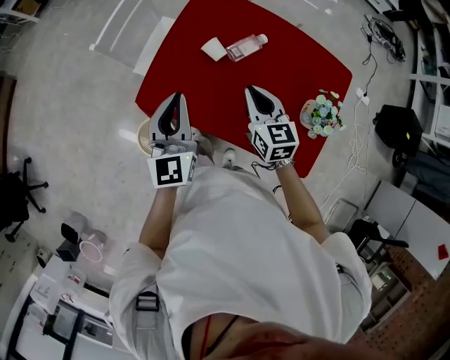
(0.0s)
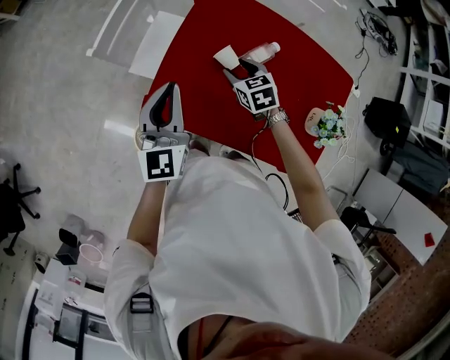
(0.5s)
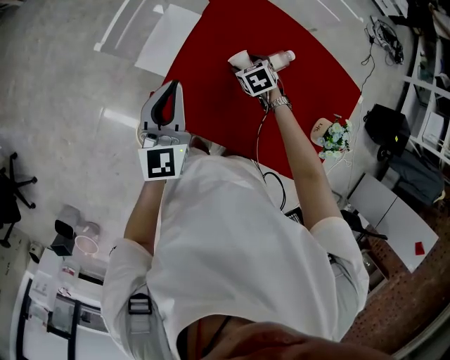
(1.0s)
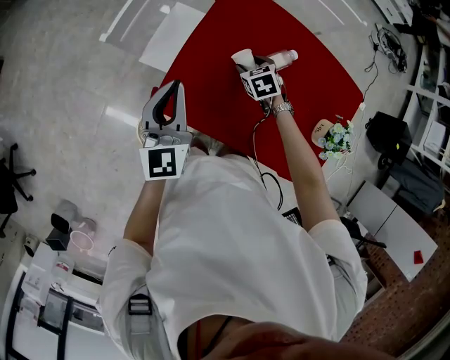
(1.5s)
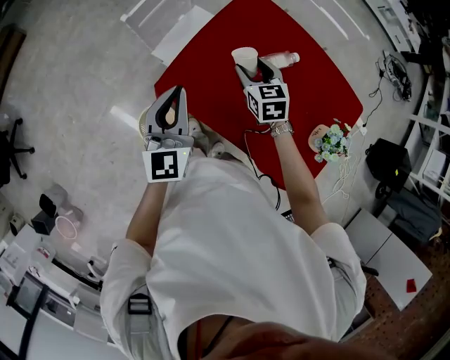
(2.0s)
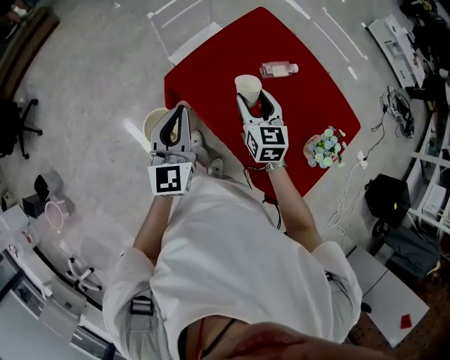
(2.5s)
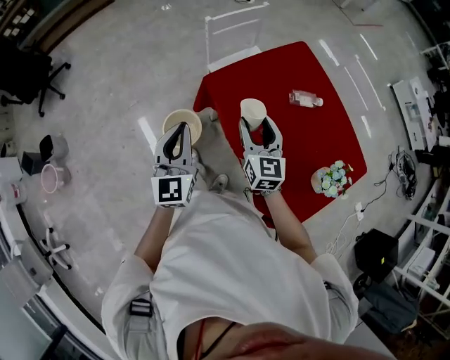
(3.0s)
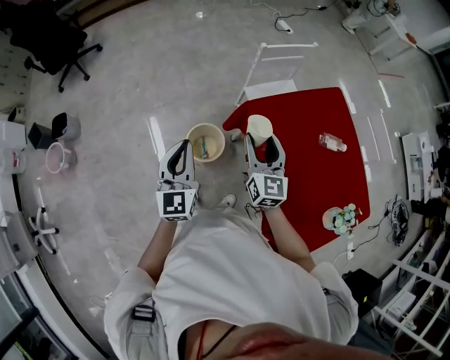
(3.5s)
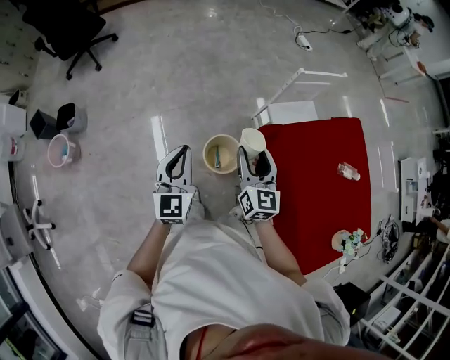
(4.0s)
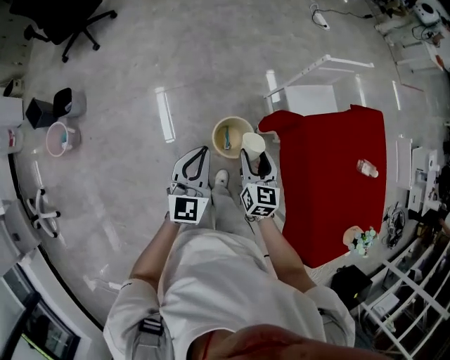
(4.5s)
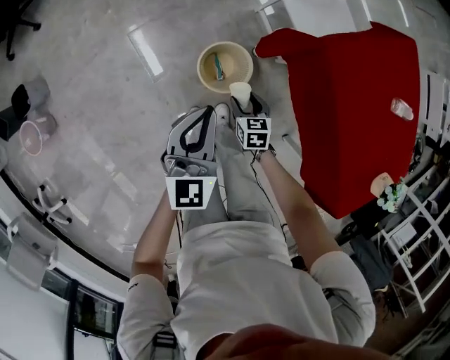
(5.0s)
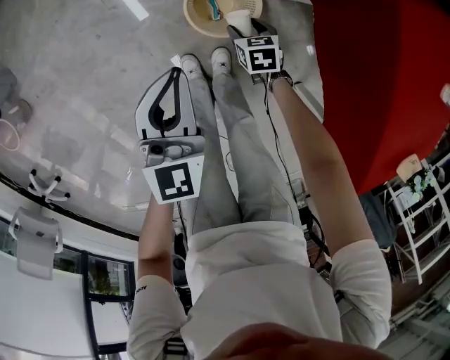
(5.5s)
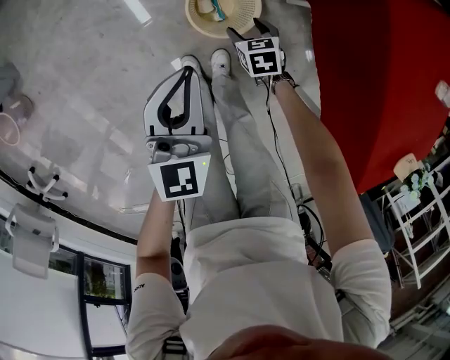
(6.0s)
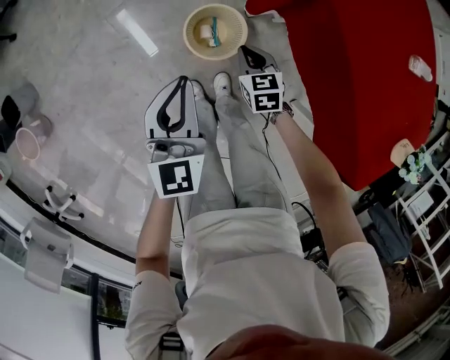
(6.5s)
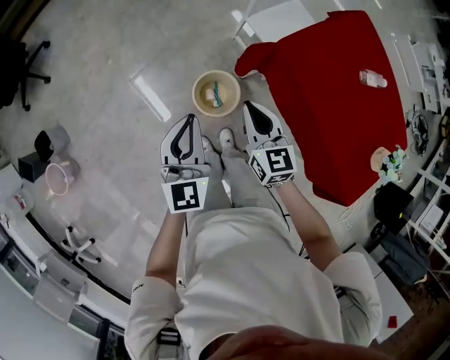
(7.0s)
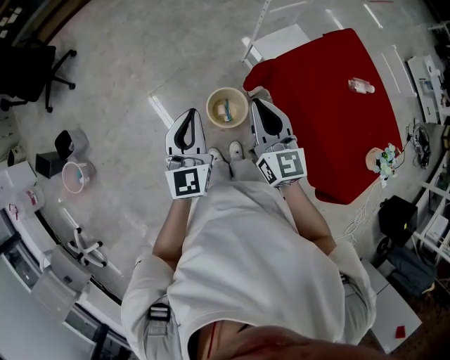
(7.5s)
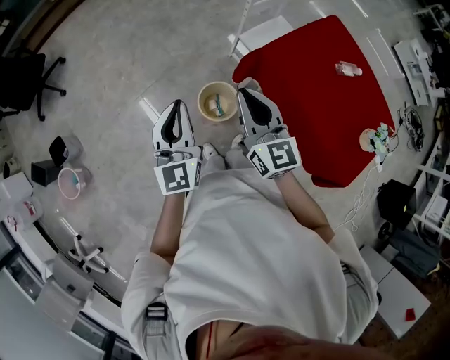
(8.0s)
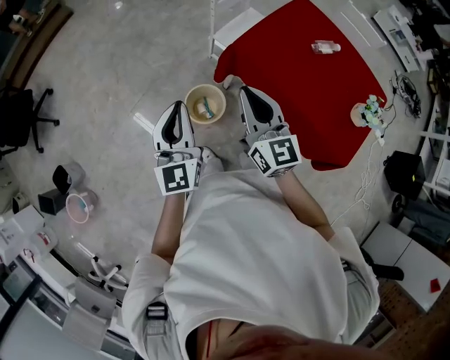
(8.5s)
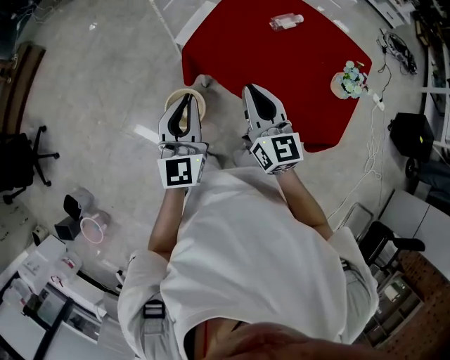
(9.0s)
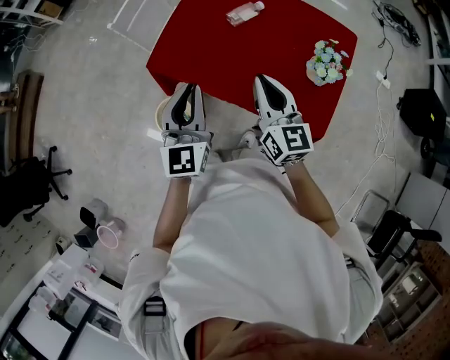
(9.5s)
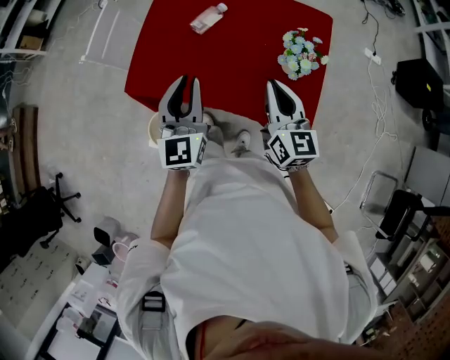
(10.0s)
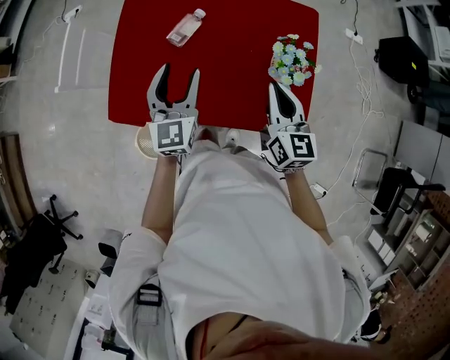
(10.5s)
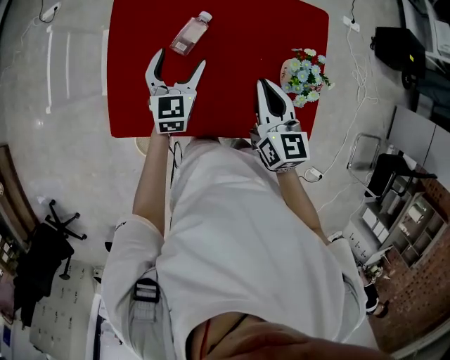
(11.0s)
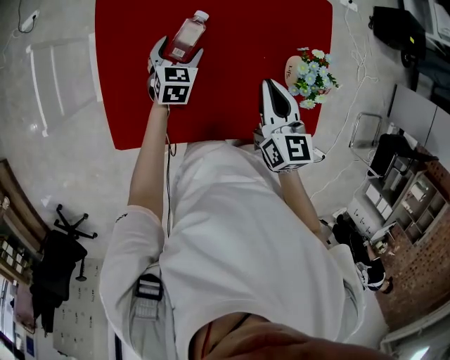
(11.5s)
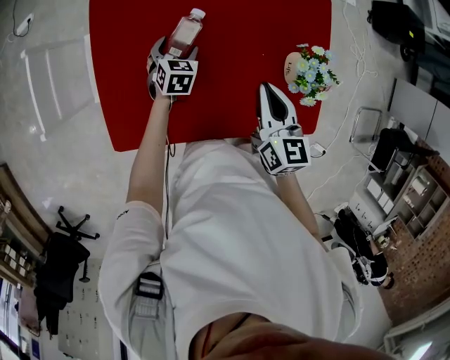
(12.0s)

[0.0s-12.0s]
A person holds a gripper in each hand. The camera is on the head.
0.0s to 2.0s: The left gripper goes about 10 cm to the left, and moves some 15 cm forward and comes back; the right gripper travels forward and to the left by some 15 cm, travels downward and back again, approximately 20 cm each way, and opens.
2.0s to 4.0s: The two grippers travel together, about 50 cm. The left gripper swivels some 40 degrees. Meanwhile the right gripper swivels about 40 degrees.
4.0s to 6.0s: The left gripper moves downward, approximately 30 cm. The right gripper moves downward, about 60 cm, and angles its fingers downward, by some 50 degrees.
6.0s to 8.0s: The left gripper moves upward, roughly 35 cm, and turns by roughly 20 degrees; the right gripper heads upward, covering about 70 cm, tips its fingers upward by about 60 degrees, and closes up.
8.0s to 10.0s: The two grippers travel together, approximately 60 cm. The right gripper changes its angle by approximately 50 degrees; the left gripper swivels about 40 degrees.
10.0s to 12.0s: The left gripper goes roughly 50 cm downward and forward, tilts its fingers approximately 50 degrees downward, and opens its fingers. The right gripper travels forward, downward and to the left by some 20 cm, and changes its angle by about 30 degrees.

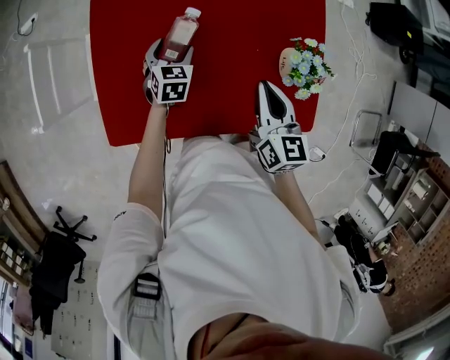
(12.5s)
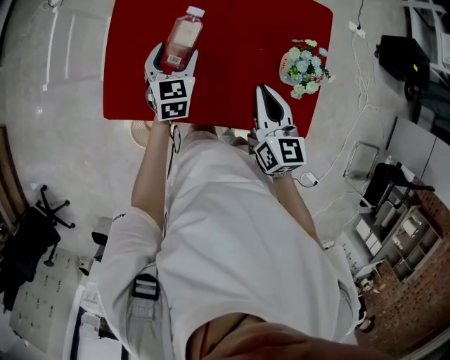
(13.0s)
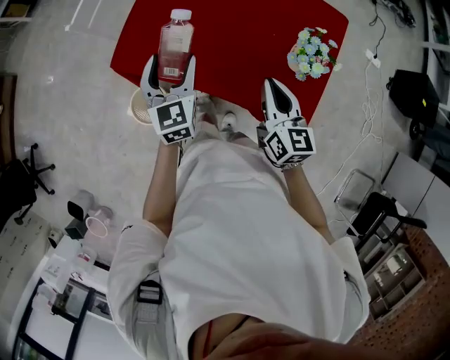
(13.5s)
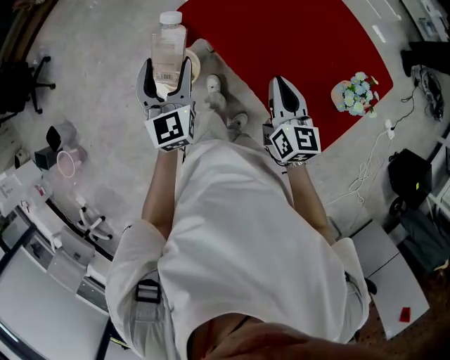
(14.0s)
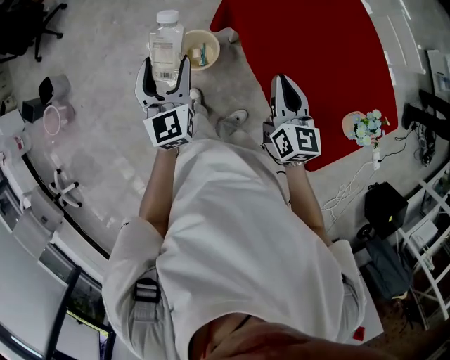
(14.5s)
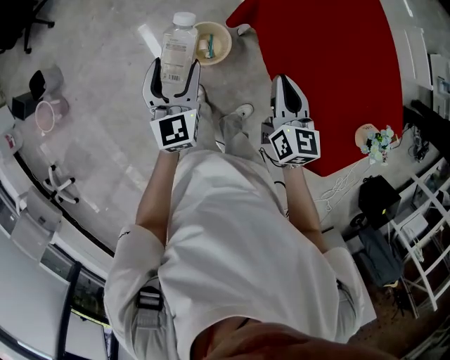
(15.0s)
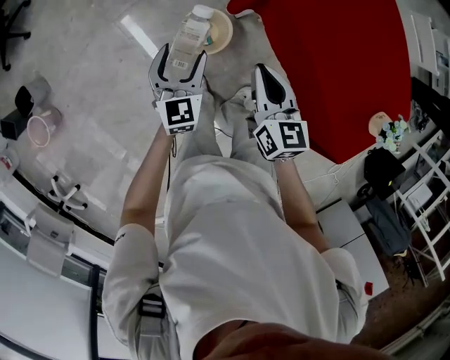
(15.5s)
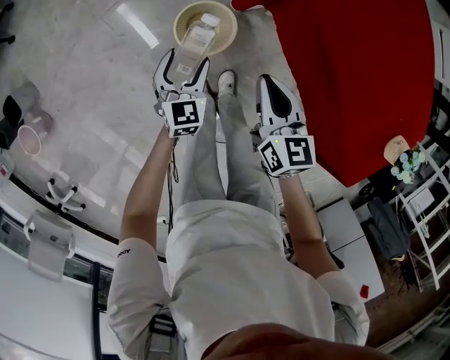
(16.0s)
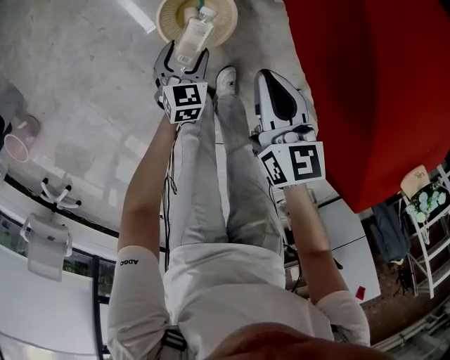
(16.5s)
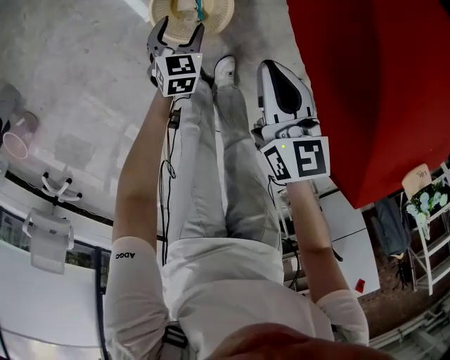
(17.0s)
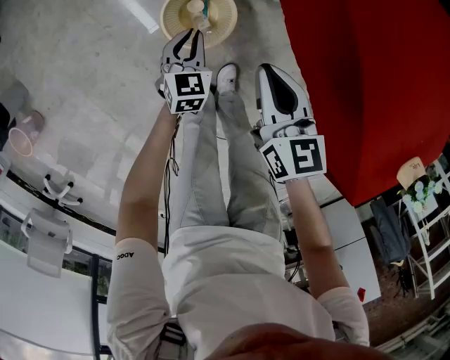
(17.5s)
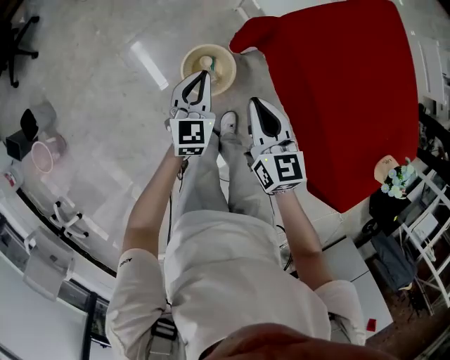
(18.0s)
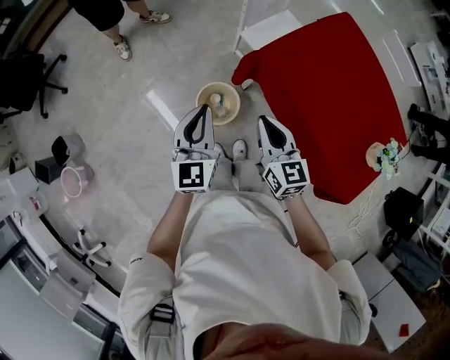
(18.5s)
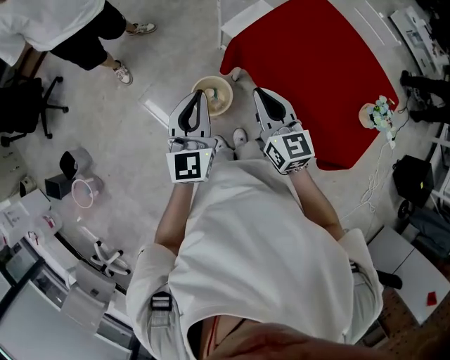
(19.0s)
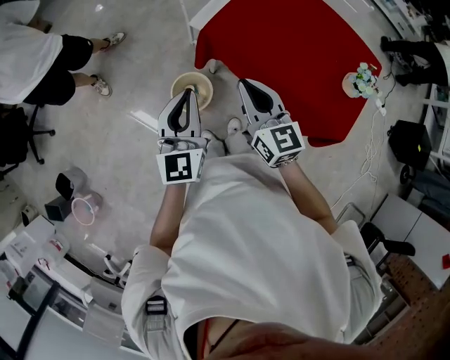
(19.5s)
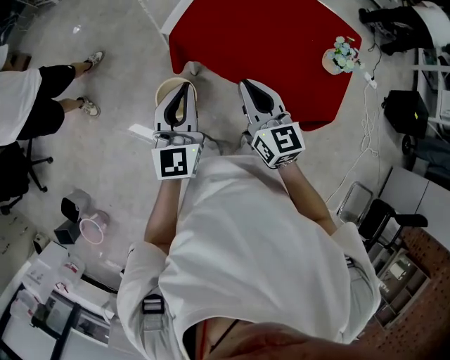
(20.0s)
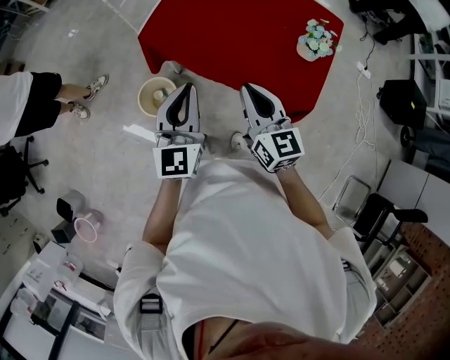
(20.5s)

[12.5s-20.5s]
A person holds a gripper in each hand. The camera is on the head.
12.5s to 14.5s: The right gripper changes place by about 30 cm, and turns by some 60 degrees. The left gripper moves some 60 cm, and angles its fingers upward, by some 40 degrees.
14.5s to 16.5s: The left gripper is displaced downward by about 60 cm, and tips its fingers downward by some 40 degrees, while the right gripper moves downward and to the left, roughly 40 cm.
16.5s to 18.5s: The right gripper goes approximately 30 cm upward. Meanwhile the left gripper heads upward, covering approximately 50 cm, tips its fingers upward by roughly 40 degrees, and closes its fingers.
18.5s to 20.5s: The right gripper changes place by about 30 cm, and swivels approximately 20 degrees; the left gripper shifts by roughly 30 cm, and swivels some 30 degrees.

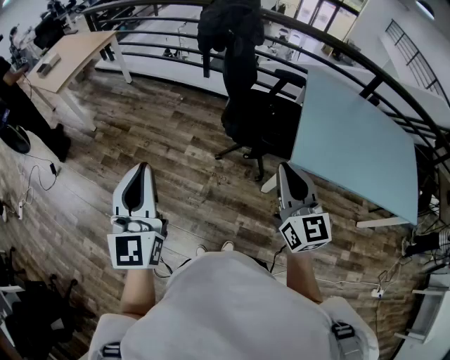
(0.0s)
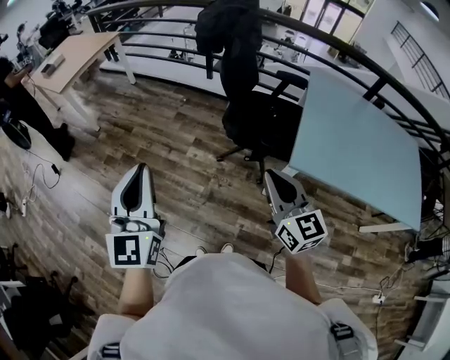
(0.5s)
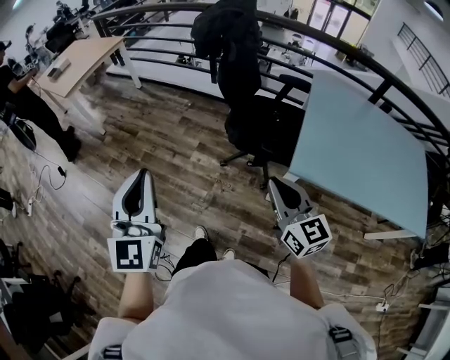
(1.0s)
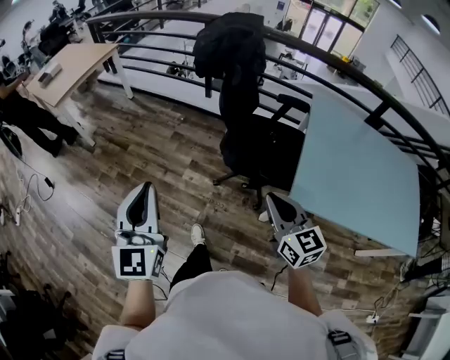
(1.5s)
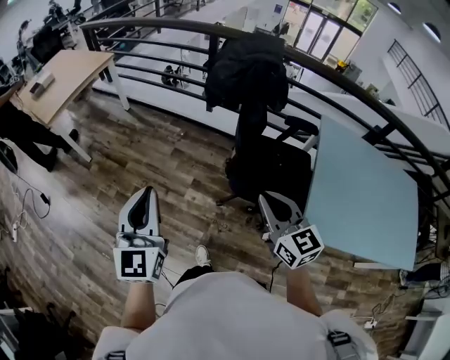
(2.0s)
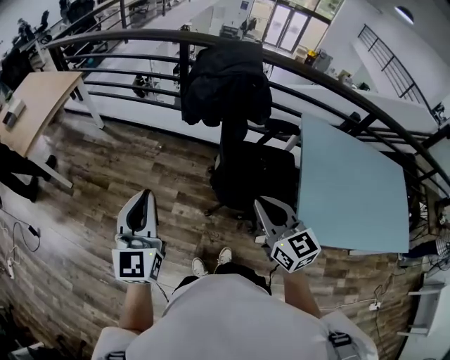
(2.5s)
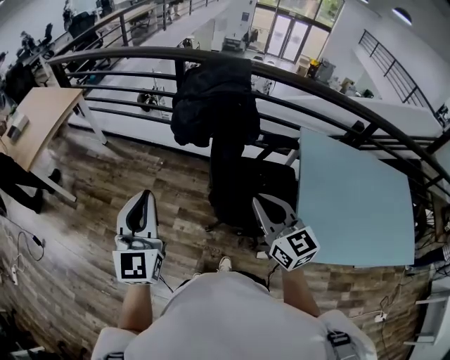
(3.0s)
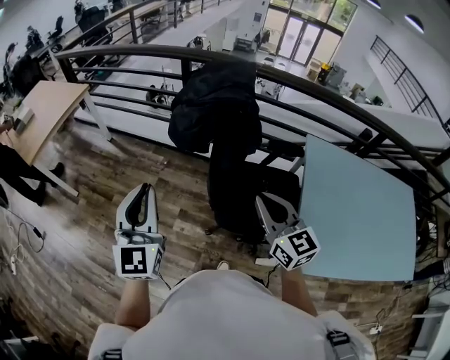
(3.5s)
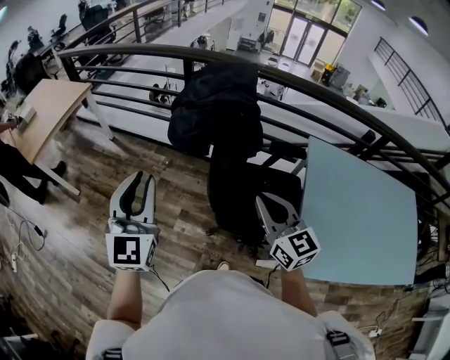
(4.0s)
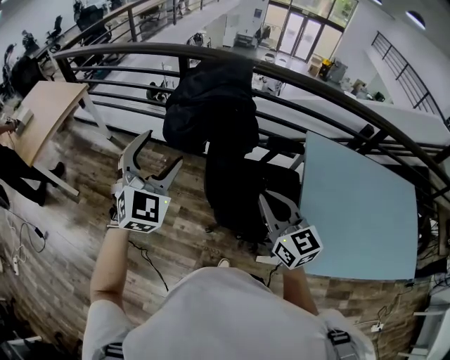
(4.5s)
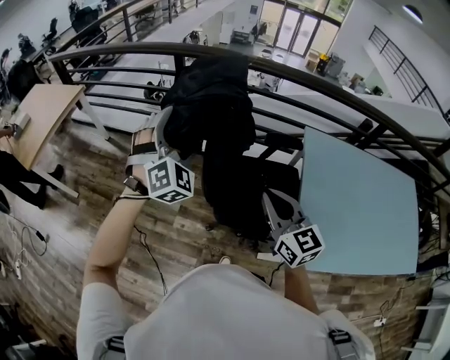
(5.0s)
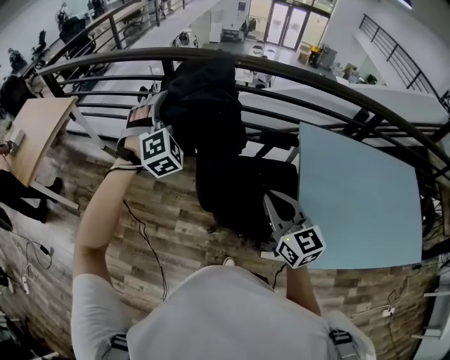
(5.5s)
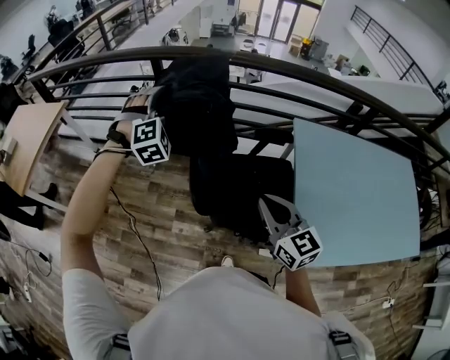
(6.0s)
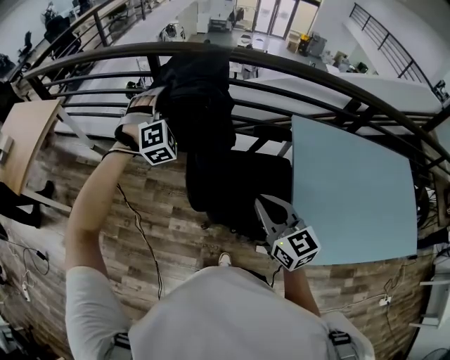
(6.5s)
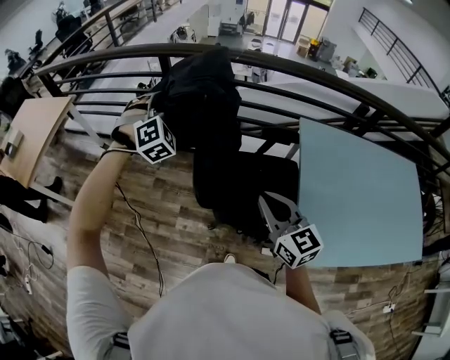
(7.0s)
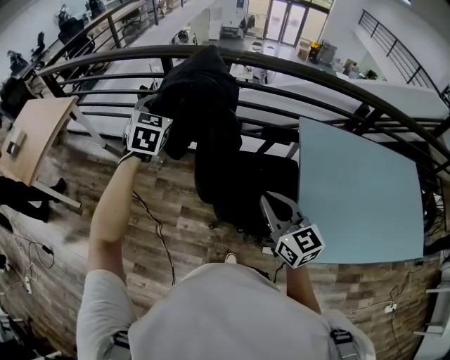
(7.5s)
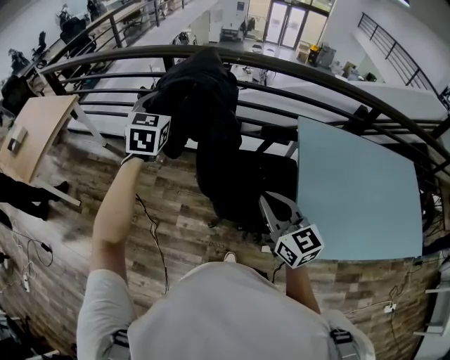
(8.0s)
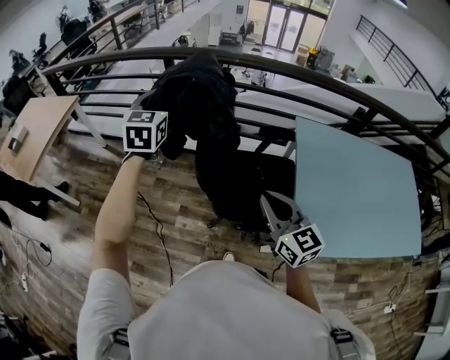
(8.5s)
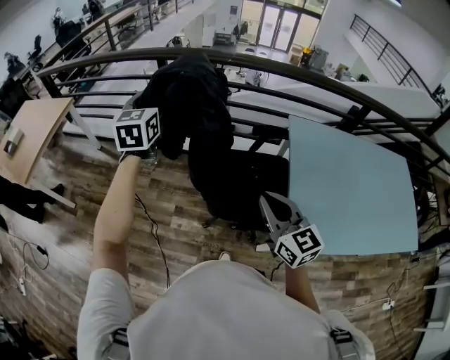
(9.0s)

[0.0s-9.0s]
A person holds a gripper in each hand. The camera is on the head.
0.0s to 2.0s: Both grippers move forward, about 25 cm.
2.0s to 4.5s: The left gripper goes some 30 cm forward and to the right, rotates approximately 40 degrees, and opens up, while the right gripper moves forward and to the right, approximately 15 cm.
4.5s to 7.0s: The left gripper goes about 20 cm forward, swivels approximately 40 degrees, and opens, then closes once more.
7.0s to 9.0s: The right gripper shifts about 10 cm backward, while the left gripper travels upward and backward by approximately 10 cm, and rotates around the line of its fingers by approximately 70 degrees, counterclockwise from behind.
